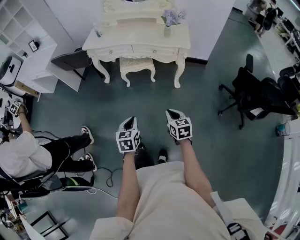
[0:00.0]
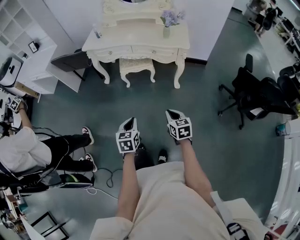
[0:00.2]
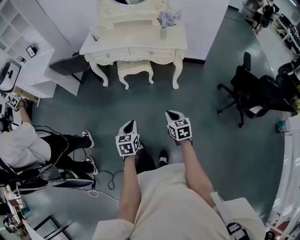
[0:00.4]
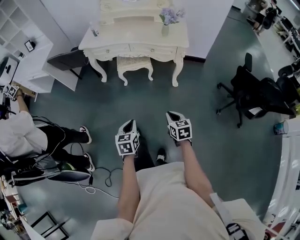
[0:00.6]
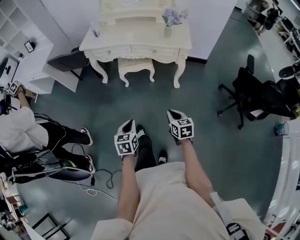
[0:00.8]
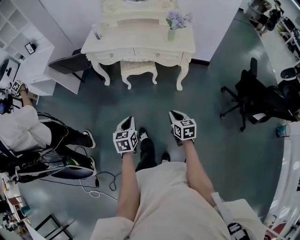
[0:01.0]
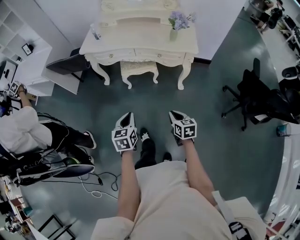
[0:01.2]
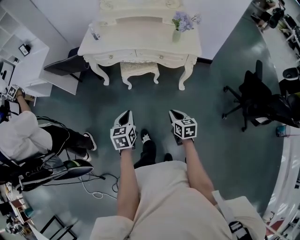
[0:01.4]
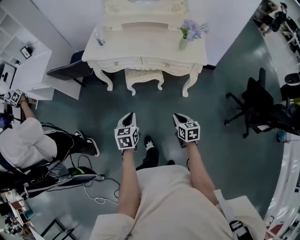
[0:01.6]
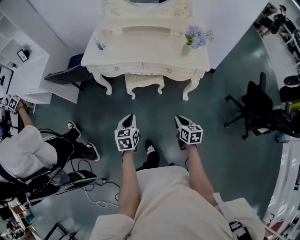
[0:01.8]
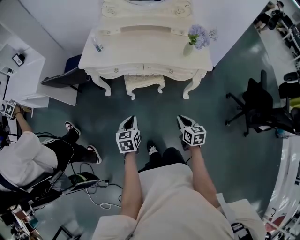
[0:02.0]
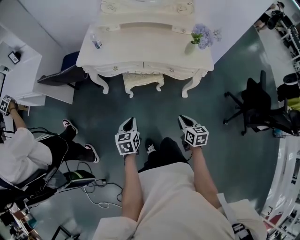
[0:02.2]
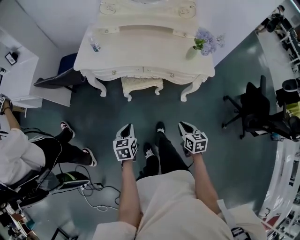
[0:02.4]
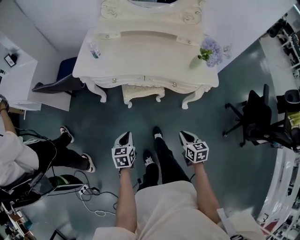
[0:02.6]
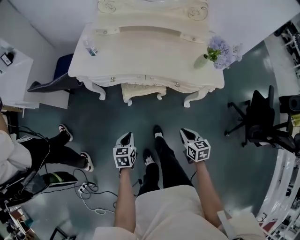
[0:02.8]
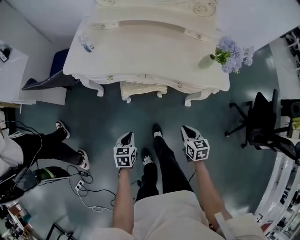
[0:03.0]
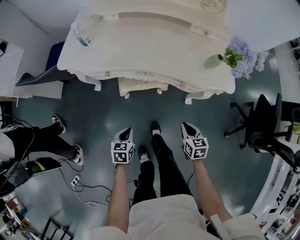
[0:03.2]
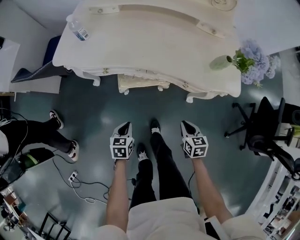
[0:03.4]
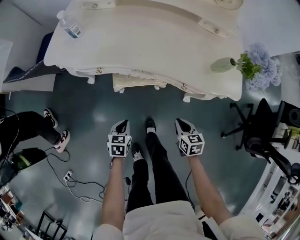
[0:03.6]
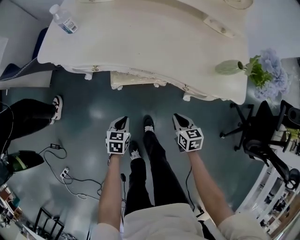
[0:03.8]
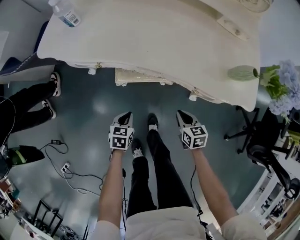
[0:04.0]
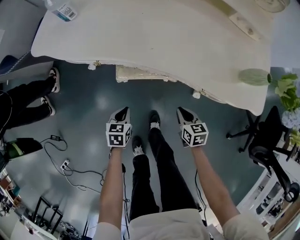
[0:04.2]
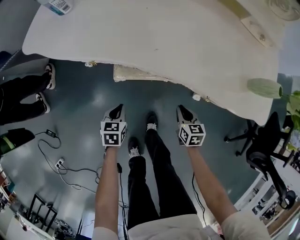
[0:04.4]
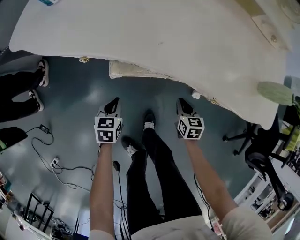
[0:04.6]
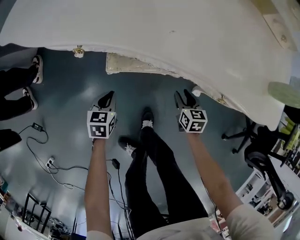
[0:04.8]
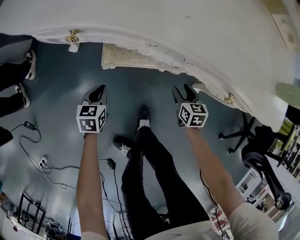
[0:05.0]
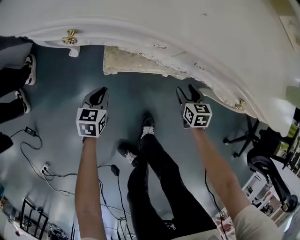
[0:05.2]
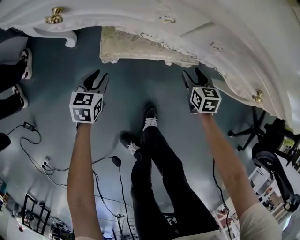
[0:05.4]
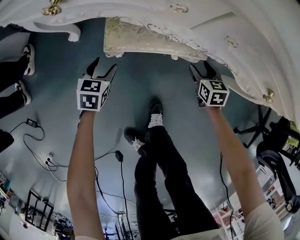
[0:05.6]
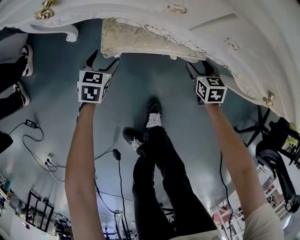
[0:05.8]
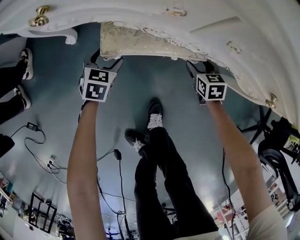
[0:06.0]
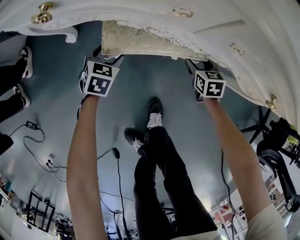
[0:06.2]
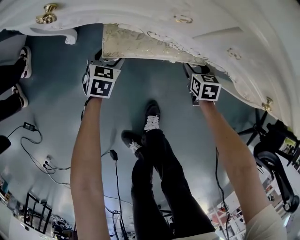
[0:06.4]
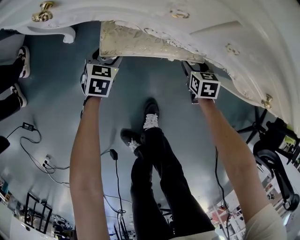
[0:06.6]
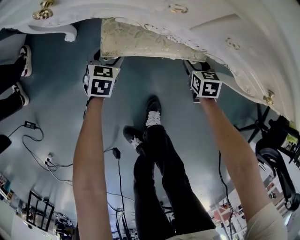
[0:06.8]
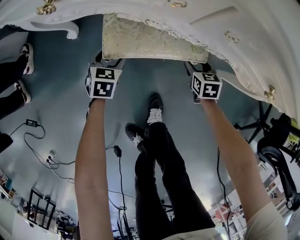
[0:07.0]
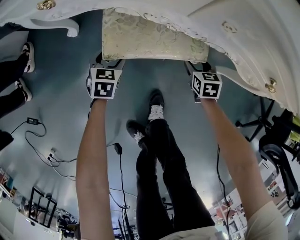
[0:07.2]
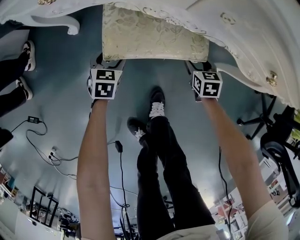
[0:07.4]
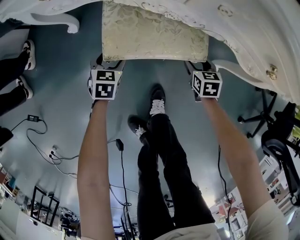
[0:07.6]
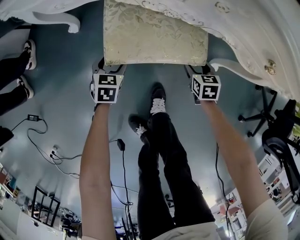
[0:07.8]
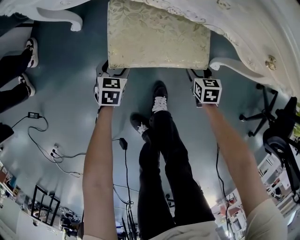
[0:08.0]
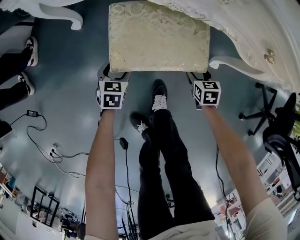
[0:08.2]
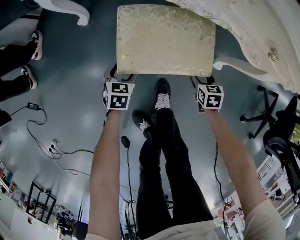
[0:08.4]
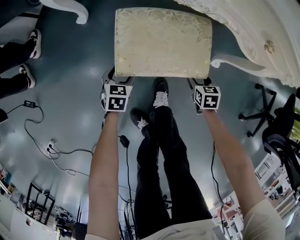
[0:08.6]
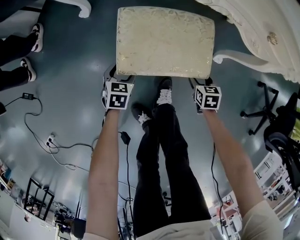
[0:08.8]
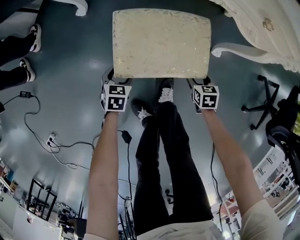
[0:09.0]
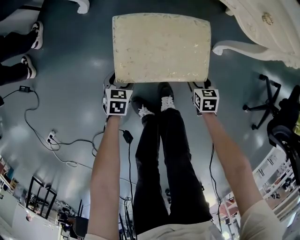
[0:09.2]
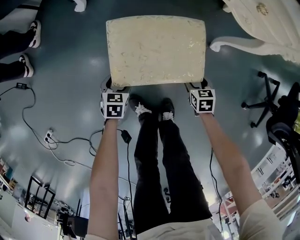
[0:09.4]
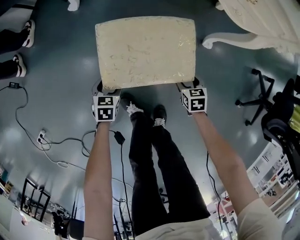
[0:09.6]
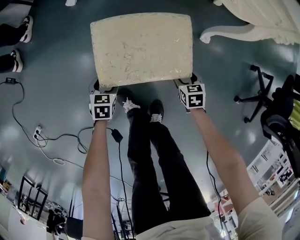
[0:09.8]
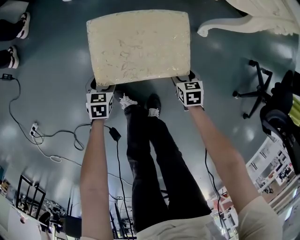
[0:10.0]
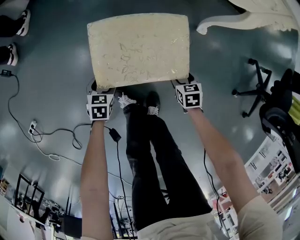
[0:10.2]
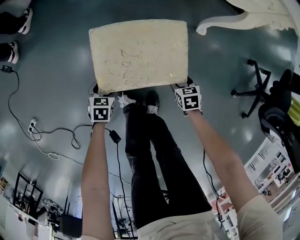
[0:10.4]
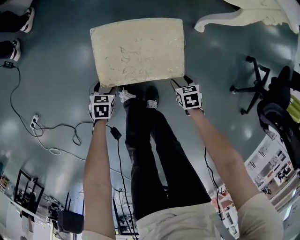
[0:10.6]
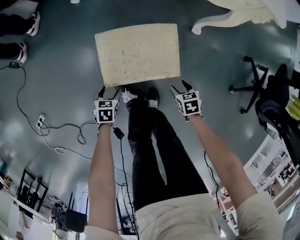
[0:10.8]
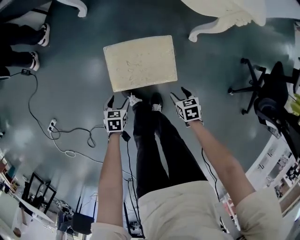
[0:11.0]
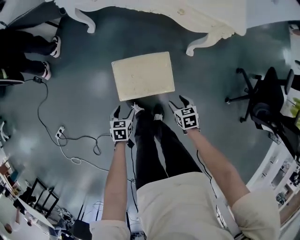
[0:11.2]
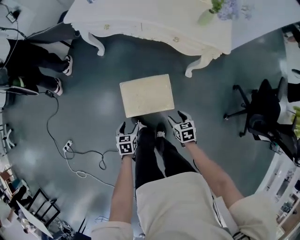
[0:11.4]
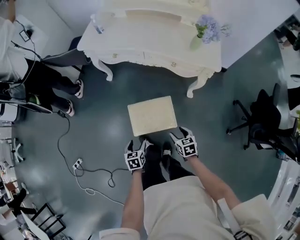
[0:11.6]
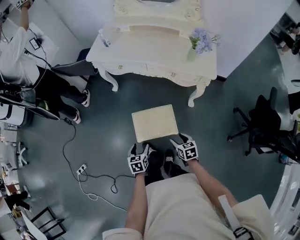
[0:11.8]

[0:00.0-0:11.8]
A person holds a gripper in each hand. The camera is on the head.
0:00.0 to 0:01.4: The grippers both shift forward by some 15 cm.
0:01.4 to 0:03.0: Both grippers travel together forward and downward, some 25 cm.
0:03.0 to 0:04.4: Both grippers move downward and forward, roughly 30 cm.
0:04.4 to 0:06.0: The grippers both shift downward and forward by about 25 cm. The right gripper opens; the left gripper opens its fingers.
0:06.0 to 0:07.4: Both grippers move backward, approximately 5 cm.
0:07.4 to 0:08.8: Both grippers travel together backward, about 20 cm.
0:08.8 to 0:10.4: The grippers both shift backward by approximately 25 cm.
0:10.4 to 0:11.8: Both grippers travel together upward, approximately 40 cm. The left gripper rotates roughly 20 degrees; the right gripper turns by approximately 20 degrees.

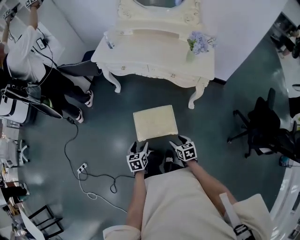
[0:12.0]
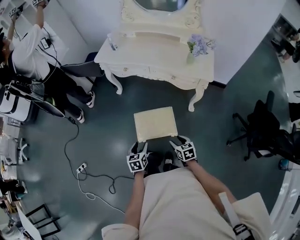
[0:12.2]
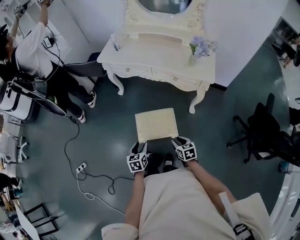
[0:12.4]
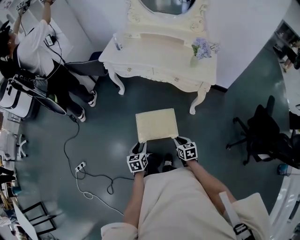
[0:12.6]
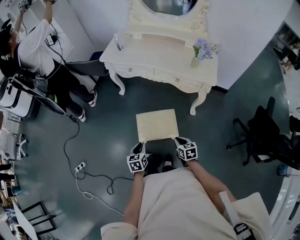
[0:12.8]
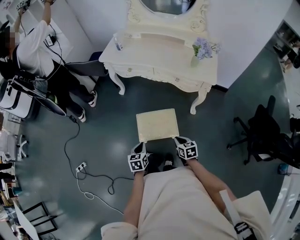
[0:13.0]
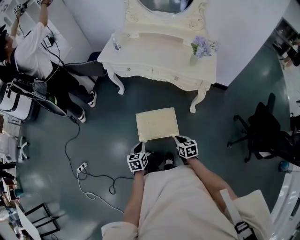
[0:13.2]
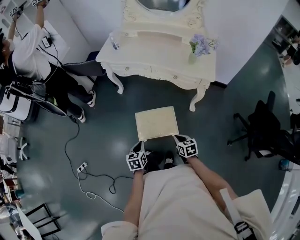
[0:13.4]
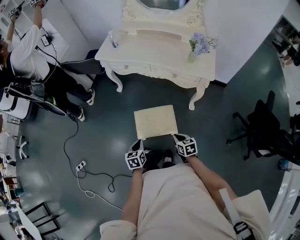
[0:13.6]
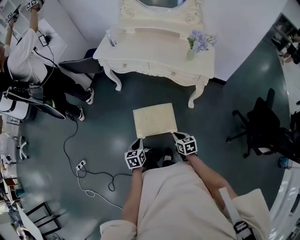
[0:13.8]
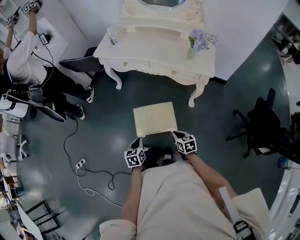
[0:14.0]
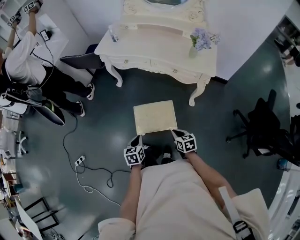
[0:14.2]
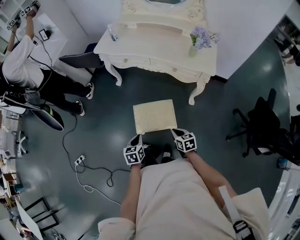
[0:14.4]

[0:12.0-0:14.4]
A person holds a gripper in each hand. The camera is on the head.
0:12.0 to 0:13.2: The right gripper closes its fingers. Meanwhile the left gripper closes up.
0:13.2 to 0:14.4: Both grippers stay put.

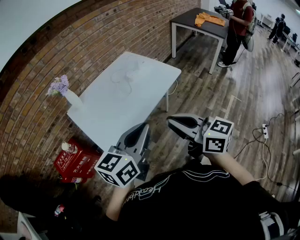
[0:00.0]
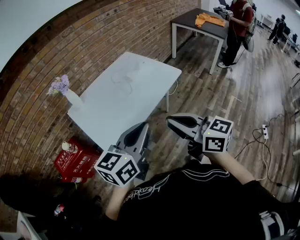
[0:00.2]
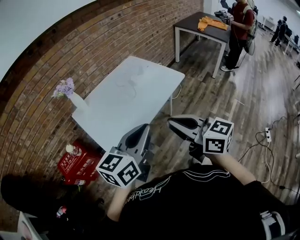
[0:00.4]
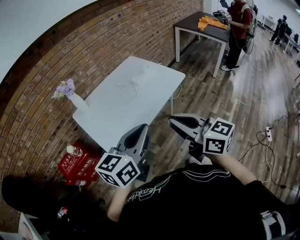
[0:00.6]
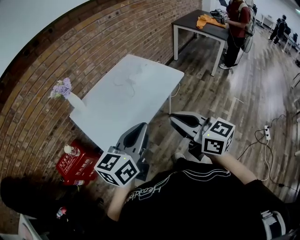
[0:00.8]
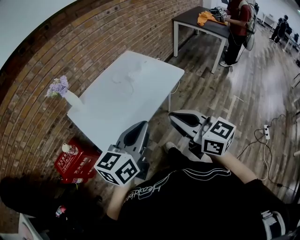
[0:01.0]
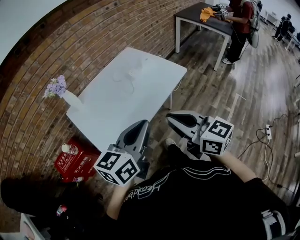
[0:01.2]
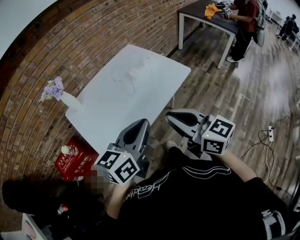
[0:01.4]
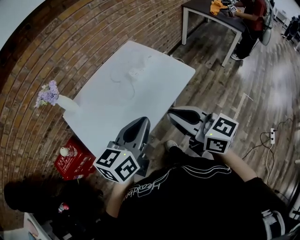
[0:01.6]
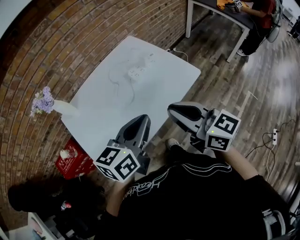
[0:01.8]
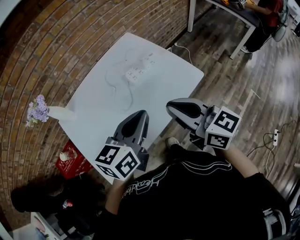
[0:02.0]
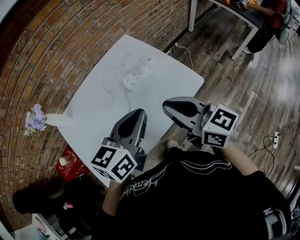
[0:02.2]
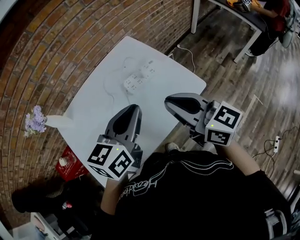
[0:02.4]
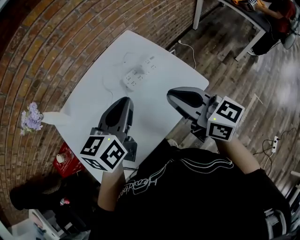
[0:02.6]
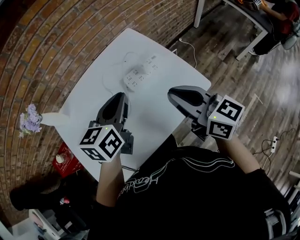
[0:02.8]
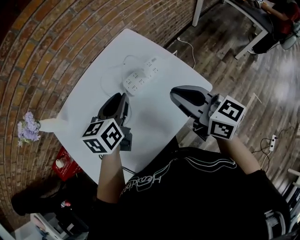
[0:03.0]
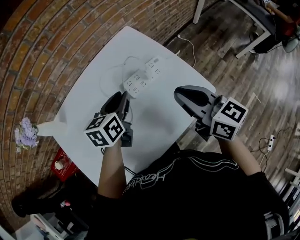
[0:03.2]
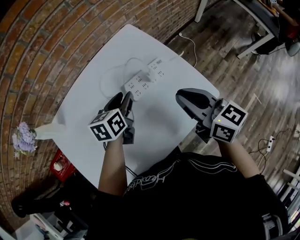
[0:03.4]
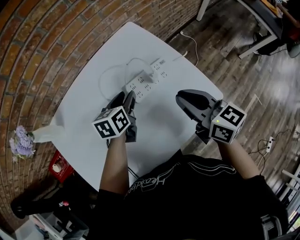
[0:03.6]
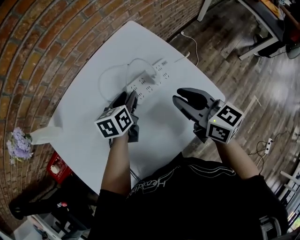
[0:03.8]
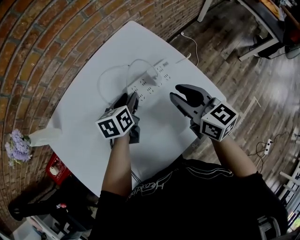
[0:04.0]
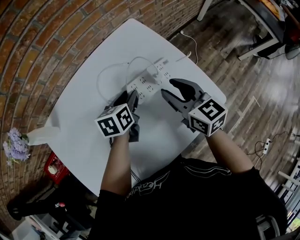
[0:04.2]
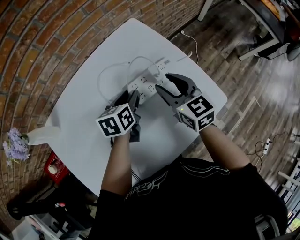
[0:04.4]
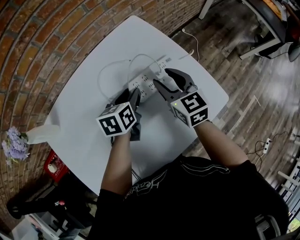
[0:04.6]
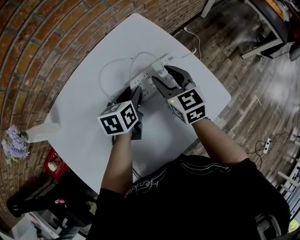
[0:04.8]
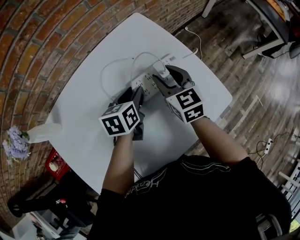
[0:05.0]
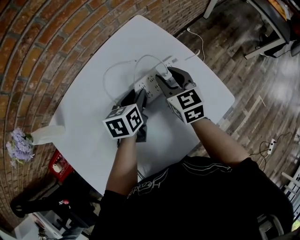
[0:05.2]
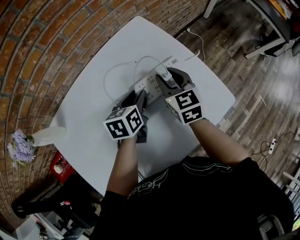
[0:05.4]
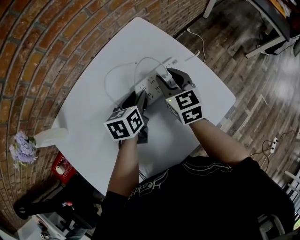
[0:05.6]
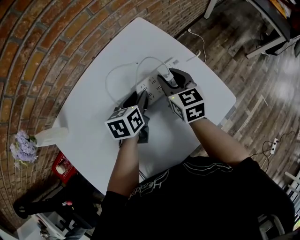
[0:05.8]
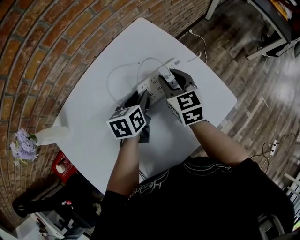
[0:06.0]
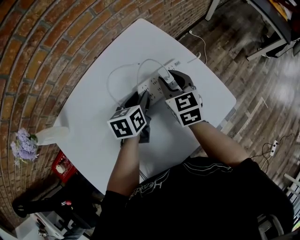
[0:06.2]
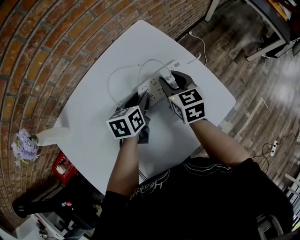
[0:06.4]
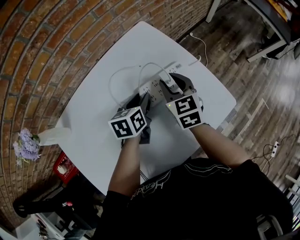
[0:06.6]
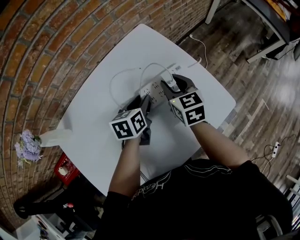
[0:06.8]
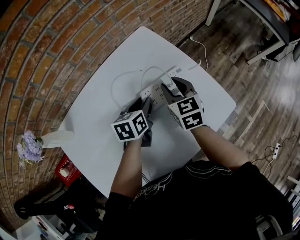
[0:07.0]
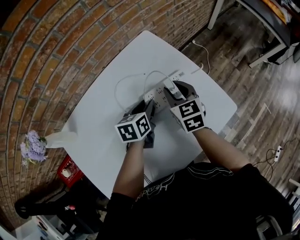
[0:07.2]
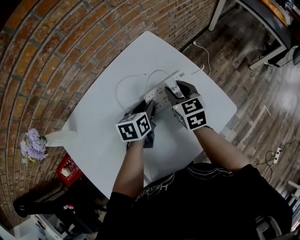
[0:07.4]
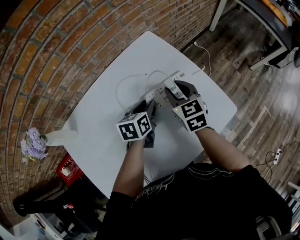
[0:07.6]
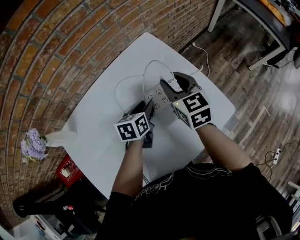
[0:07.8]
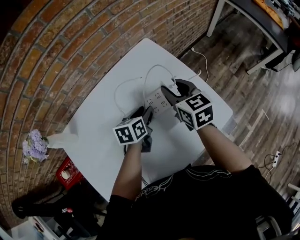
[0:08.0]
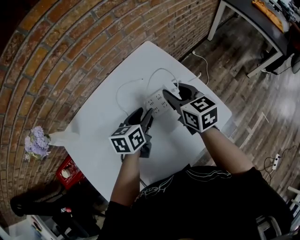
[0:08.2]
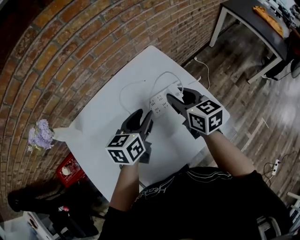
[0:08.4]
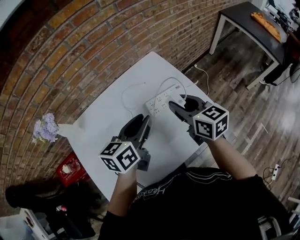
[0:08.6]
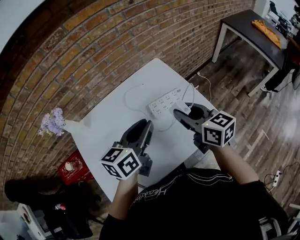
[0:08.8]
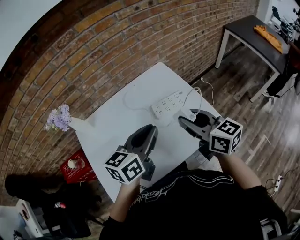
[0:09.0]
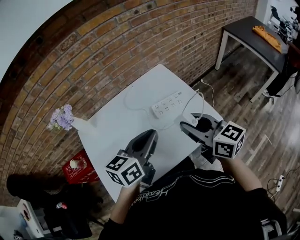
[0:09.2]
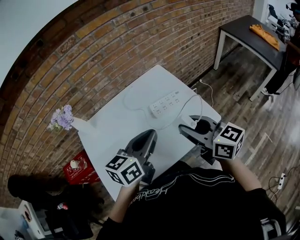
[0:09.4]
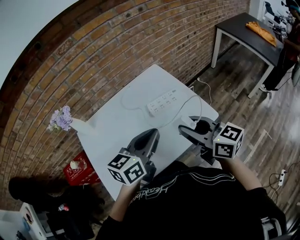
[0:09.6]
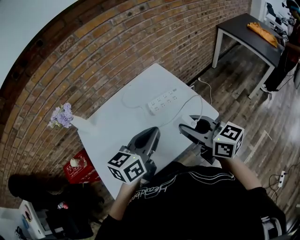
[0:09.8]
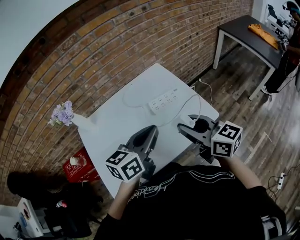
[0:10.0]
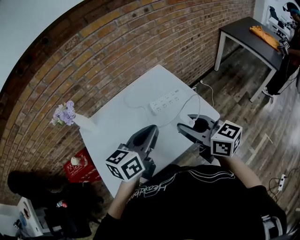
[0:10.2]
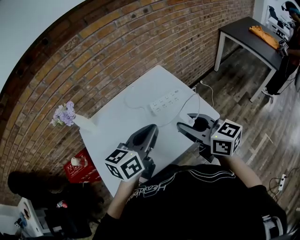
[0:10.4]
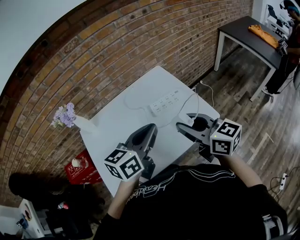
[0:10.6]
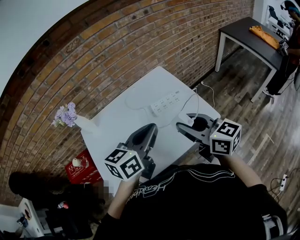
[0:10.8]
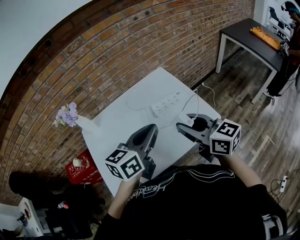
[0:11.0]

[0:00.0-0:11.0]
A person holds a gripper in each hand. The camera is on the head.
0:00.0 to 0:01.6: The grippers both shift forward by approximately 20 cm.
0:01.6 to 0:03.2: The left gripper heads forward and downward, covering some 40 cm, changes its angle by about 30 degrees, and opens its fingers. The right gripper heads forward, covering some 30 cm.
0:03.2 to 0:04.8: The right gripper heads downward, forward and to the left, covering some 20 cm, changes its angle by roughly 30 degrees, and opens its fingers. The left gripper shifts approximately 15 cm downward and forward.
0:04.8 to 0:06.2: The grippers stay close to where they were, moving slightly.
0:06.2 to 0:07.8: The right gripper is displaced upward by about 5 cm.
0:07.8 to 0:09.4: The right gripper goes roughly 30 cm backward and upward, and swivels roughly 30 degrees. The left gripper heads upward and backward, covering about 35 cm, turns by about 30 degrees, and closes its fingers.
0:09.4 to 0:11.0: The grippers make only small movements.
